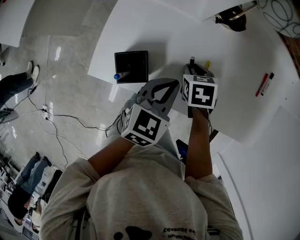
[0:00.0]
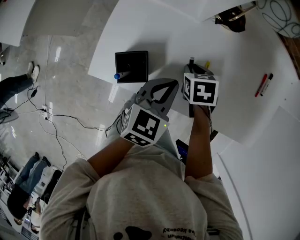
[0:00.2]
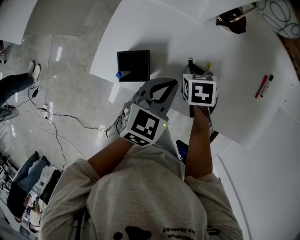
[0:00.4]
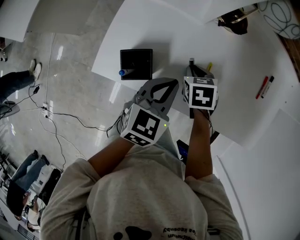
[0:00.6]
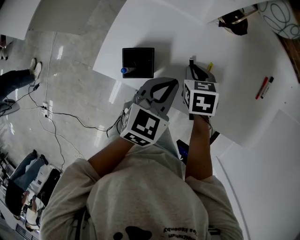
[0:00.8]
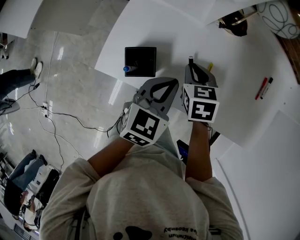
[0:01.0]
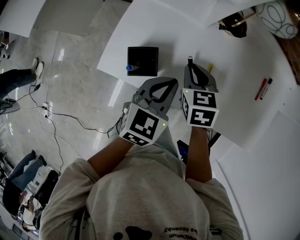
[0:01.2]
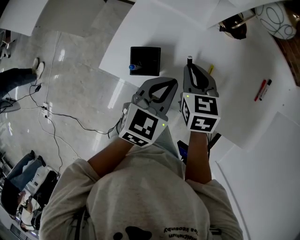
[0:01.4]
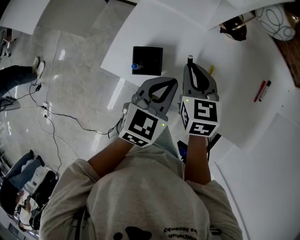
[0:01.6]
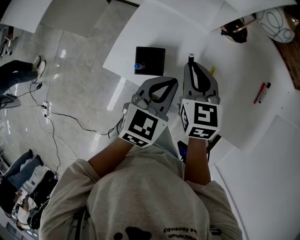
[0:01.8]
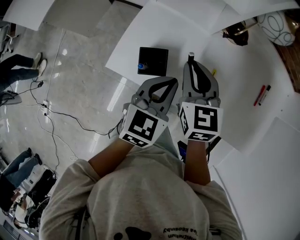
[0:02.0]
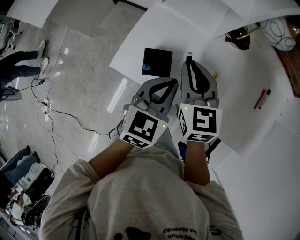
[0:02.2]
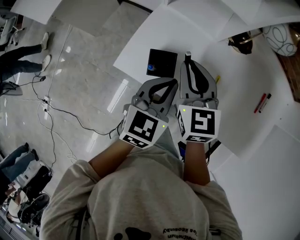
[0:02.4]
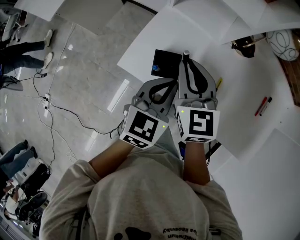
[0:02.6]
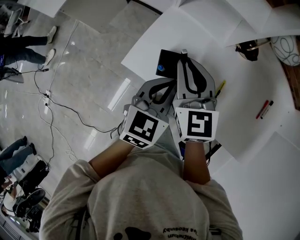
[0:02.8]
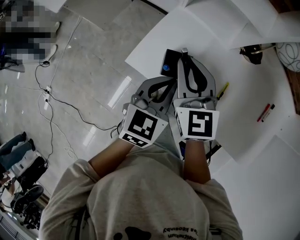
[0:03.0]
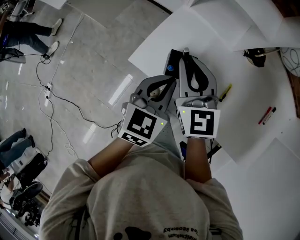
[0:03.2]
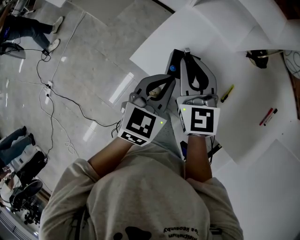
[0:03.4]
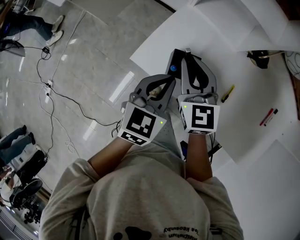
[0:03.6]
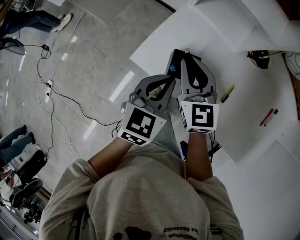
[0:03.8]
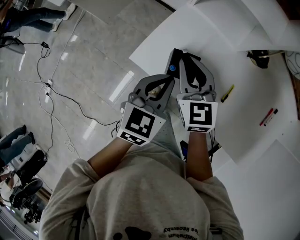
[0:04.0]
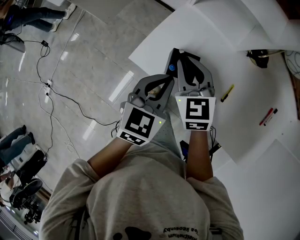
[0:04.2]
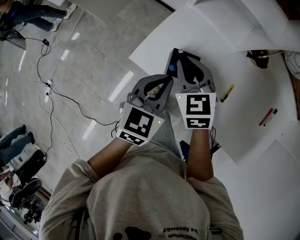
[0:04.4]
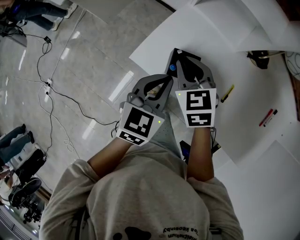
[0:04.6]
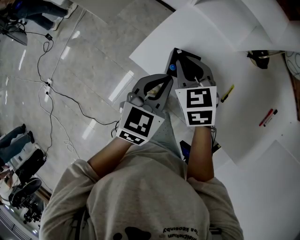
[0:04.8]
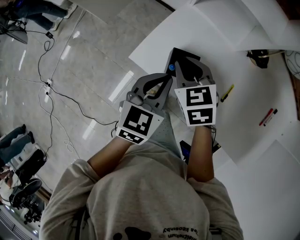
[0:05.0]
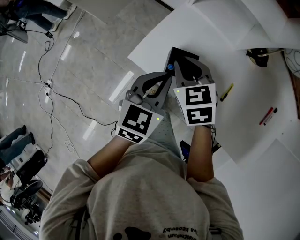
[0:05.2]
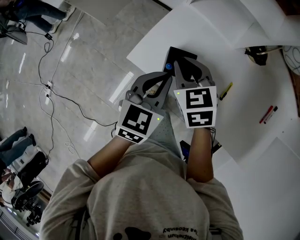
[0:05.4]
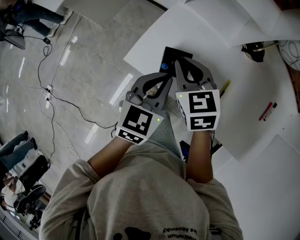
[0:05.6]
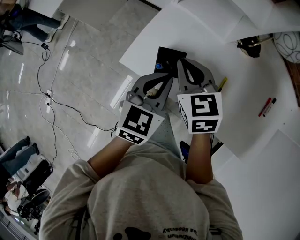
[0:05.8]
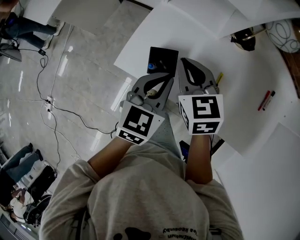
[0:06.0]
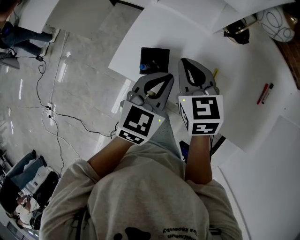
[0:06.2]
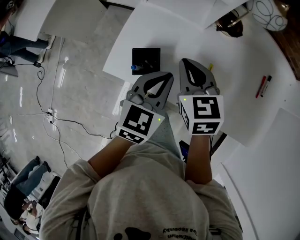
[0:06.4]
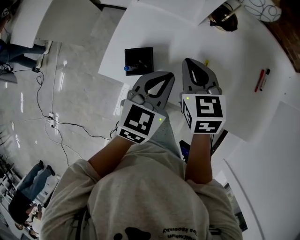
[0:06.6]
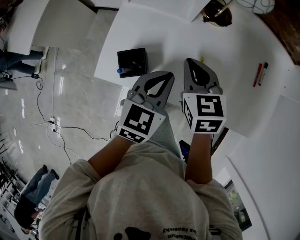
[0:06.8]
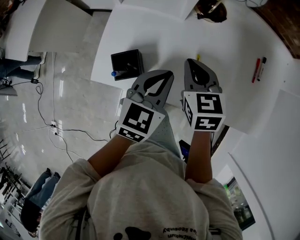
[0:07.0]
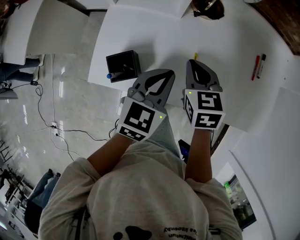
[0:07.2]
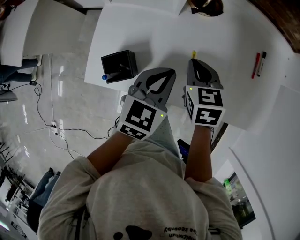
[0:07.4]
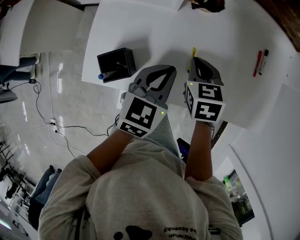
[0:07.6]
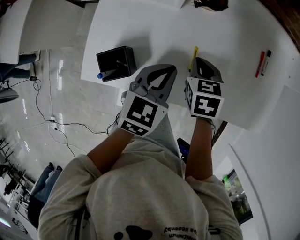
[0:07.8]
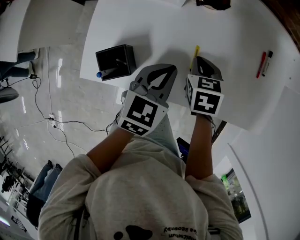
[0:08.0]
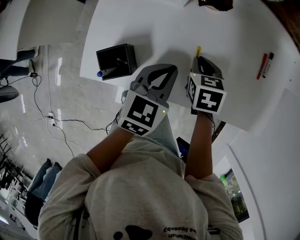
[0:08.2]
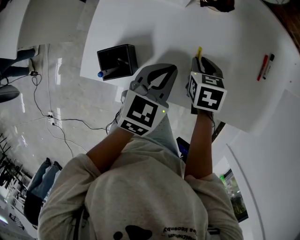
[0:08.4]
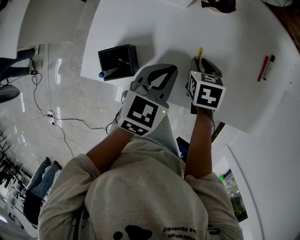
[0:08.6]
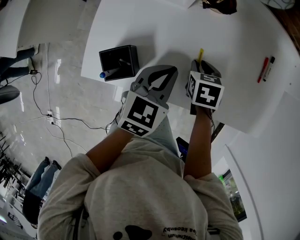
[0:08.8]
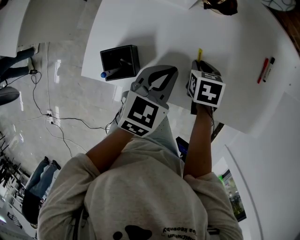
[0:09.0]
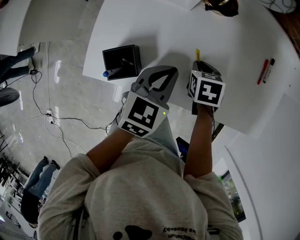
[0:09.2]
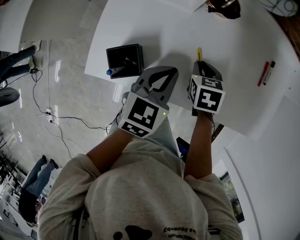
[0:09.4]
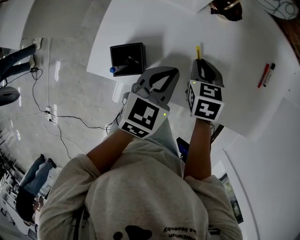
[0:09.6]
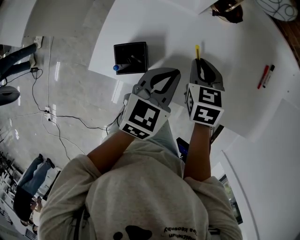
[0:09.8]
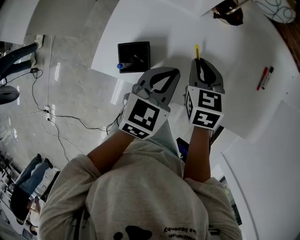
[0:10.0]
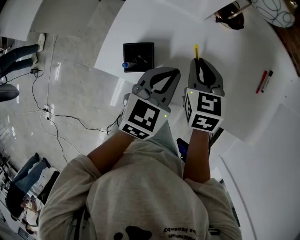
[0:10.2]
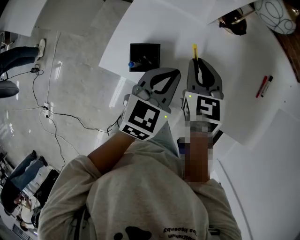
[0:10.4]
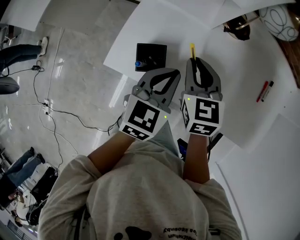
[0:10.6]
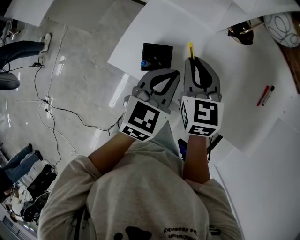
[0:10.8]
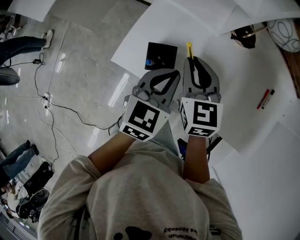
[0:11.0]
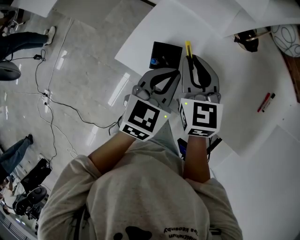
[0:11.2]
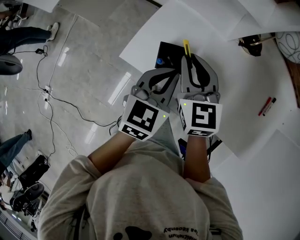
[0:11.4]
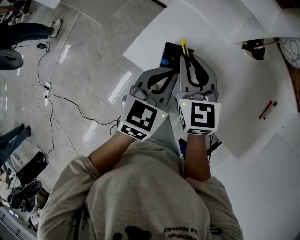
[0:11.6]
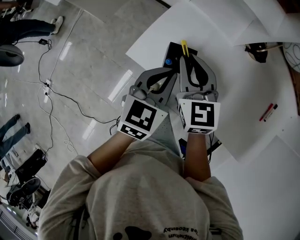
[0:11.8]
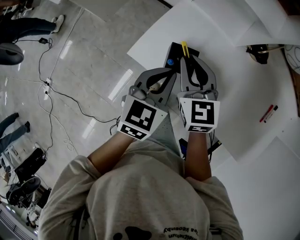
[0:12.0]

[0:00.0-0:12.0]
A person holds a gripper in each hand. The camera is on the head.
0:00.0 to 0:01.6: The right gripper moves upward and to the left, roughly 15 cm, and changes its angle by approximately 30 degrees. The left gripper shifts by approximately 5 cm.
0:01.6 to 0:03.0: The left gripper moves to the left, about 10 cm, while the right gripper is displaced to the left and upward by approximately 15 cm, and turns by about 30 degrees.
0:03.0 to 0:04.4: The right gripper is displaced downward by some 10 cm, and changes its angle by about 20 degrees.
0:04.4 to 0:06.0: Both grippers move to the right, roughly 5 cm.
0:06.0 to 0:07.6: The right gripper moves to the right and downward, approximately 20 cm, and swivels about 30 degrees, while the left gripper goes about 15 cm to the right.
0:07.6 to 0:09.0: The right gripper goes roughly 10 cm downward.
0:09.0 to 0:10.4: The left gripper heads to the left and upward, covering approximately 10 cm; the right gripper is displaced upward and to the left by some 20 cm, and rotates some 30 degrees.
0:10.4 to 0:12.0: Both grippers move to the left, roughly 15 cm. The right gripper changes its angle by some 30 degrees.

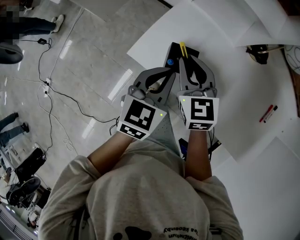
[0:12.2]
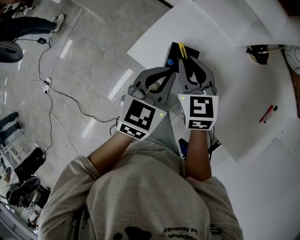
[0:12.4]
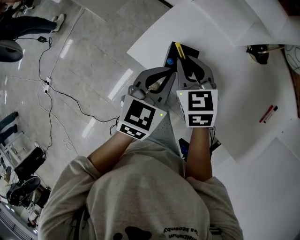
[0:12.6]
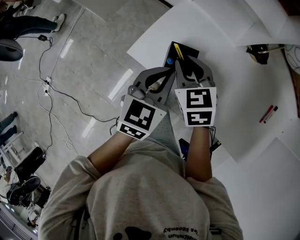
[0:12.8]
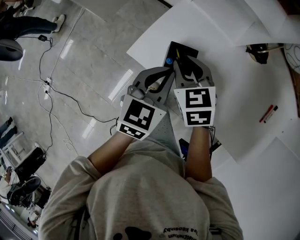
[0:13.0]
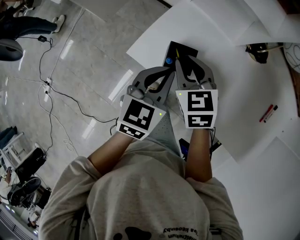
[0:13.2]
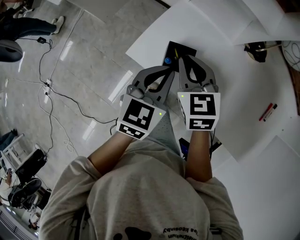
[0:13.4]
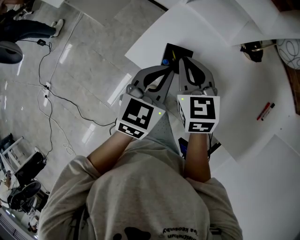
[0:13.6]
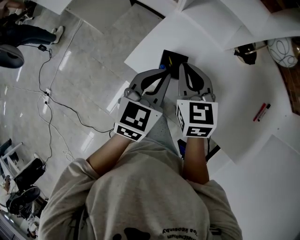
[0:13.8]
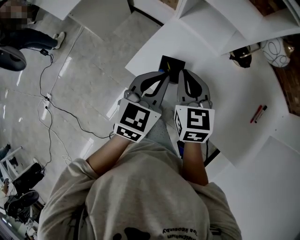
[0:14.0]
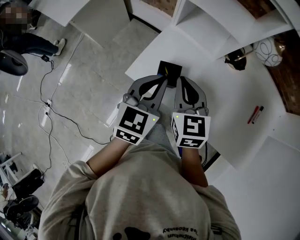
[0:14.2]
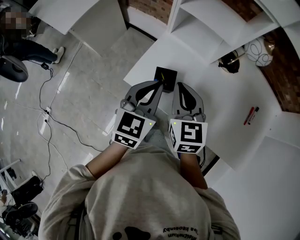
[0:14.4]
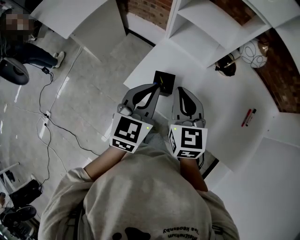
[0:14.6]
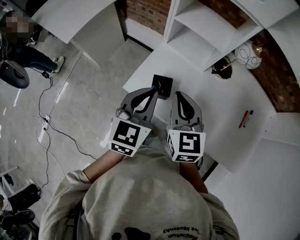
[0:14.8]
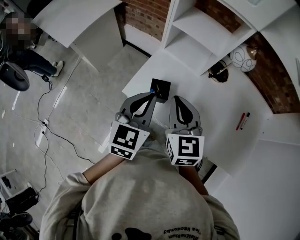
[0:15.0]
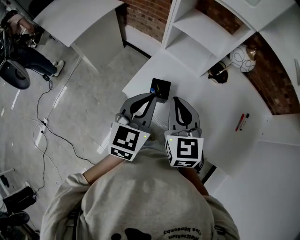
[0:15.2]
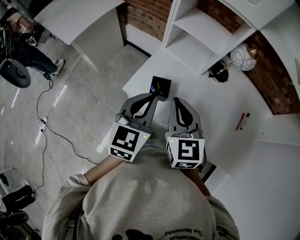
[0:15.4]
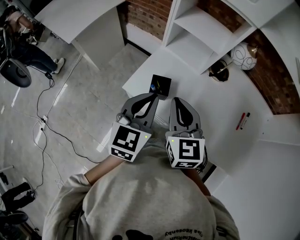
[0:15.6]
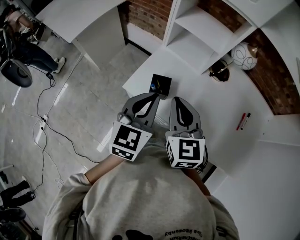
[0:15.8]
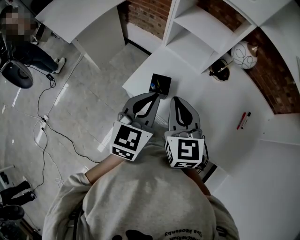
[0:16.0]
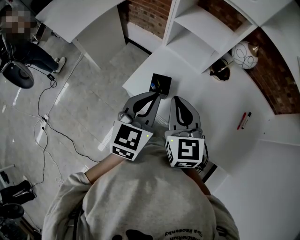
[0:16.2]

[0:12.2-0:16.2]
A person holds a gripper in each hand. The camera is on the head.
0:12.2 to 0:13.6: There are only small adjustments of the grippers.
0:13.6 to 0:14.8: The left gripper is displaced upward by approximately 10 cm; the right gripper travels upward and backward by roughly 15 cm.
0:14.8 to 0:16.2: The grippers move only a little.

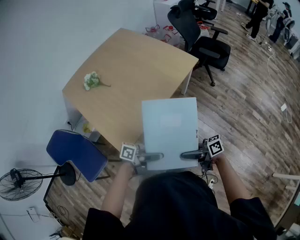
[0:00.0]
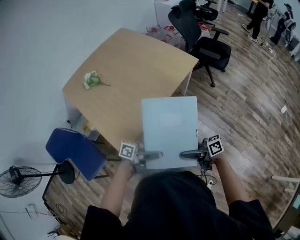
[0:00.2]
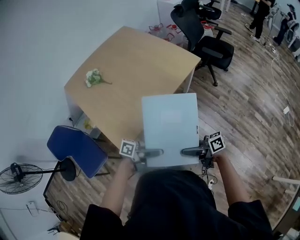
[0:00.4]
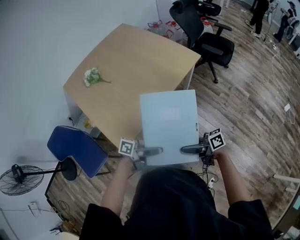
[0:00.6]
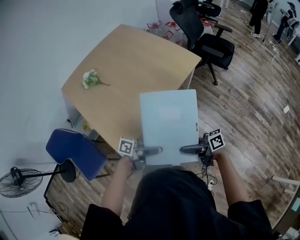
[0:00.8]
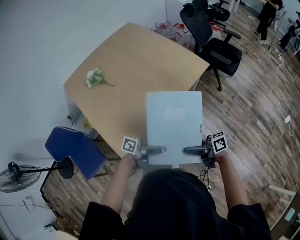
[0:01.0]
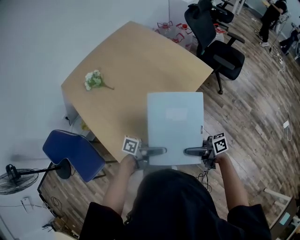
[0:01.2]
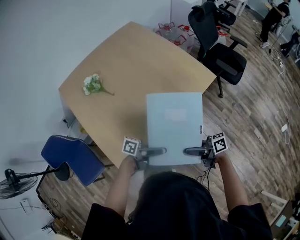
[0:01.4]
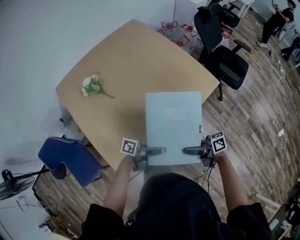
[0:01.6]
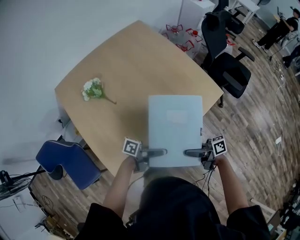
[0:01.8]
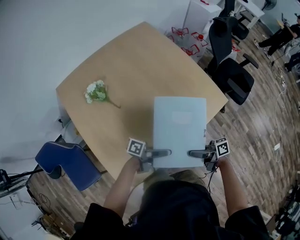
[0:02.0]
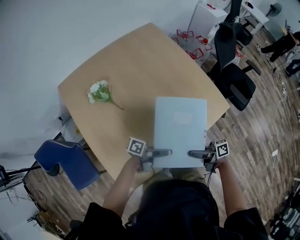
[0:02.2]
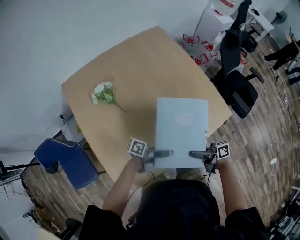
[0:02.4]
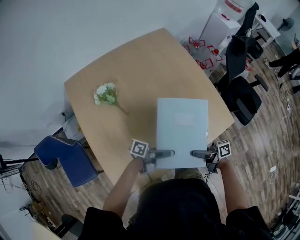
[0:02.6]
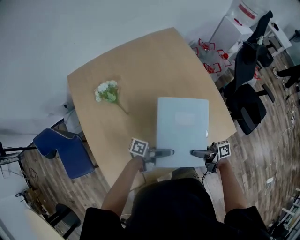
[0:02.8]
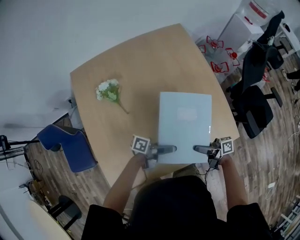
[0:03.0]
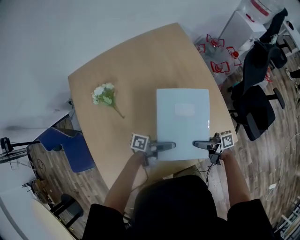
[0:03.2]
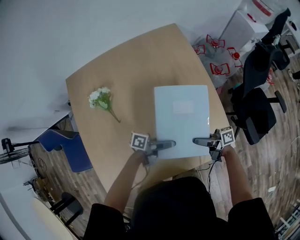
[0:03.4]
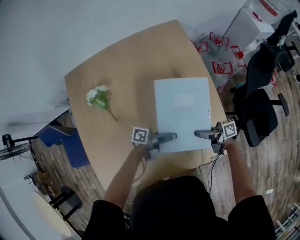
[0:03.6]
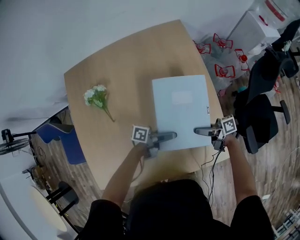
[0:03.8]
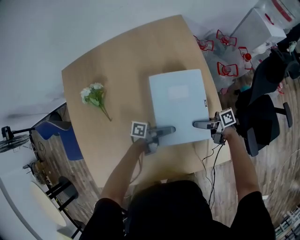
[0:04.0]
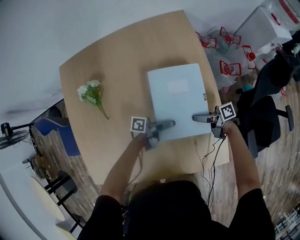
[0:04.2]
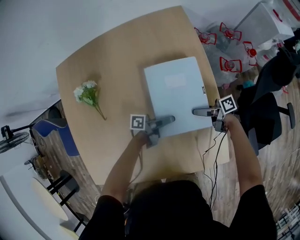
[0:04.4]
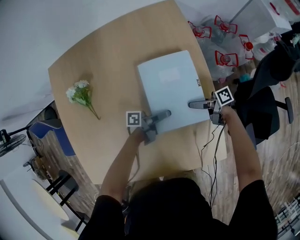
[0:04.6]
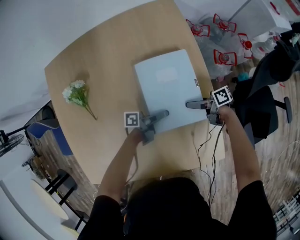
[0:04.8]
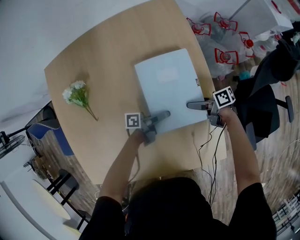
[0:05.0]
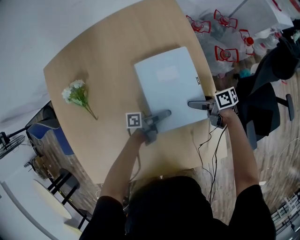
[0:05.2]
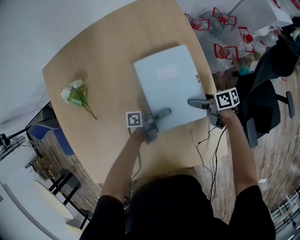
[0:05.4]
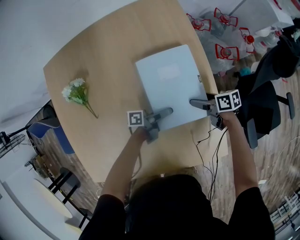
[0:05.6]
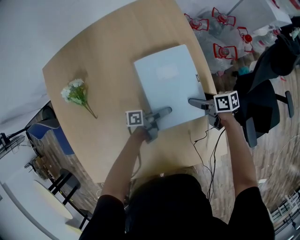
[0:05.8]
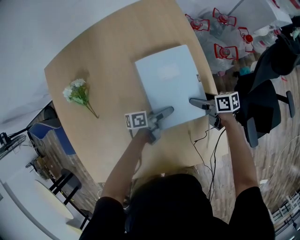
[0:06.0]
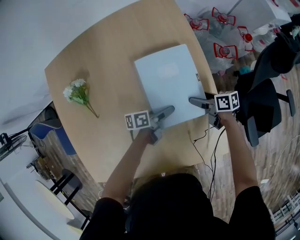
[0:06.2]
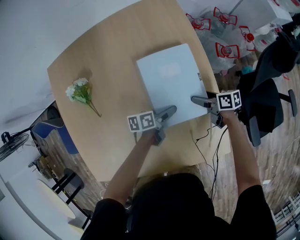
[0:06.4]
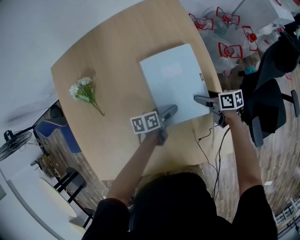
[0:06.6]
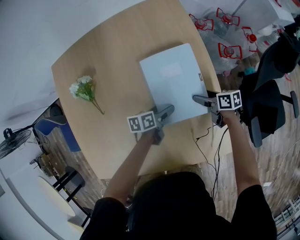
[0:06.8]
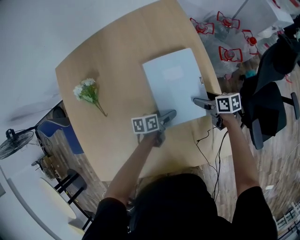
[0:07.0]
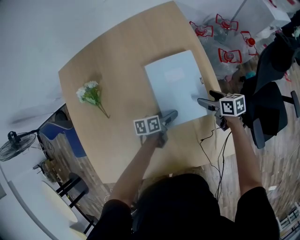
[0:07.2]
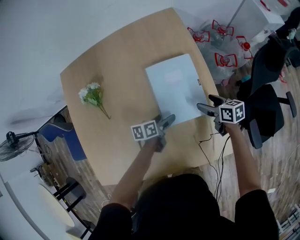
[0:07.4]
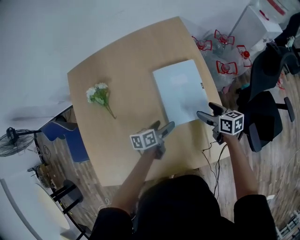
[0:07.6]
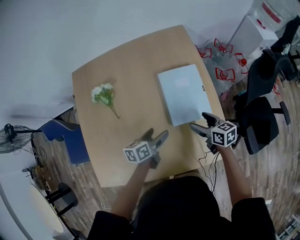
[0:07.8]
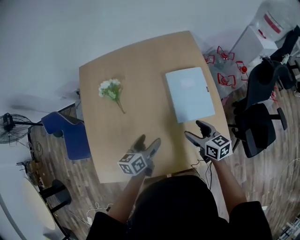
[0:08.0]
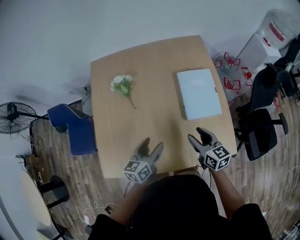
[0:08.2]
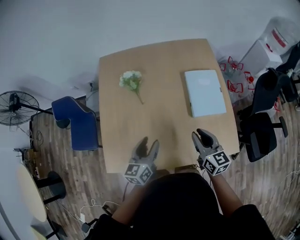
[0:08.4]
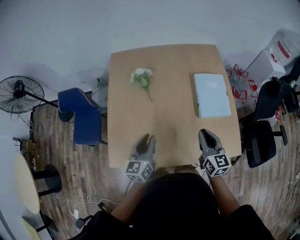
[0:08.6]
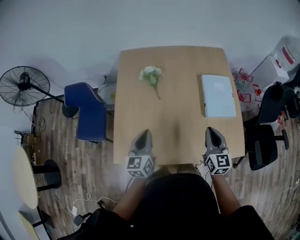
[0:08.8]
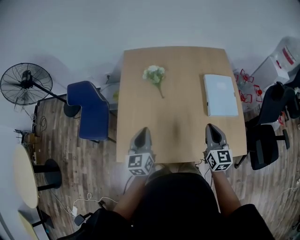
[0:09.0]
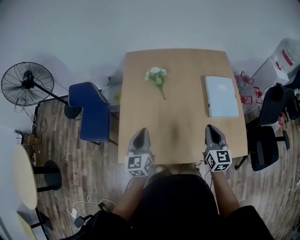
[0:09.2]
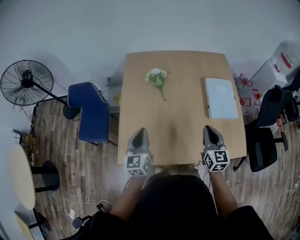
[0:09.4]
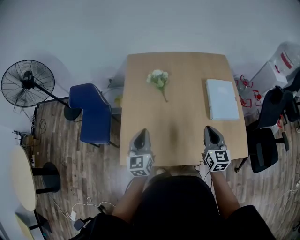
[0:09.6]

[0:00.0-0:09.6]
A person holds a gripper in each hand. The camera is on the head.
0:00.0 to 0:01.6: The right gripper moves approximately 30 cm.
0:01.6 to 0:03.2: The right gripper changes place by roughly 40 cm.
0:03.2 to 0:04.8: The right gripper changes place by roughly 35 cm, and changes its angle by roughly 20 degrees.
0:04.8 to 0:06.4: The right gripper turns by roughly 30 degrees.
0:06.4 to 0:08.0: The right gripper ends up about 35 cm from where it was, and rotates roughly 40 degrees.
0:08.0 to 0:09.6: The right gripper ends up some 30 cm from where it was, changes its angle by about 30 degrees, and closes.
